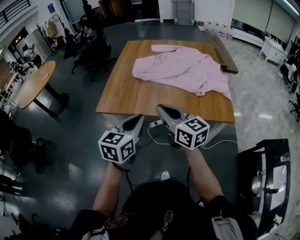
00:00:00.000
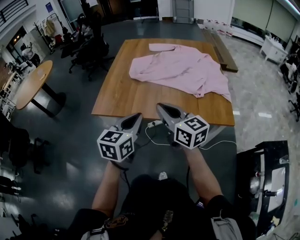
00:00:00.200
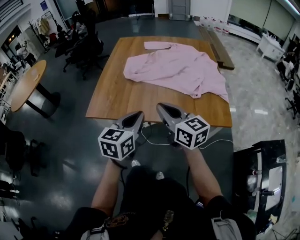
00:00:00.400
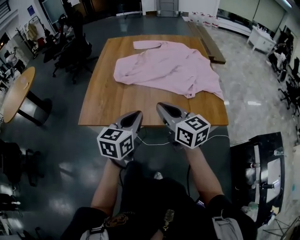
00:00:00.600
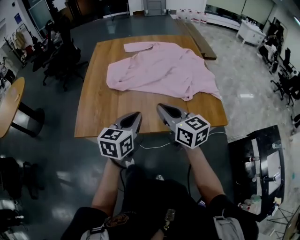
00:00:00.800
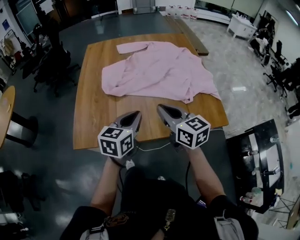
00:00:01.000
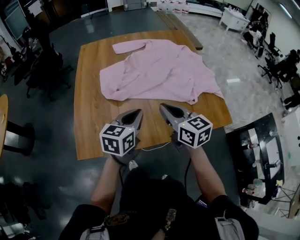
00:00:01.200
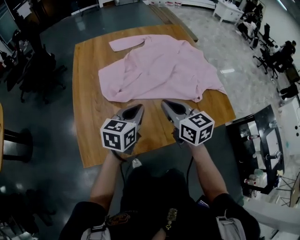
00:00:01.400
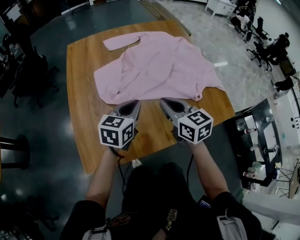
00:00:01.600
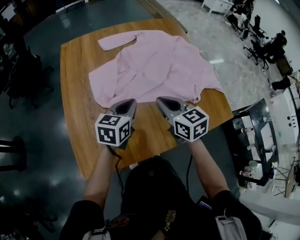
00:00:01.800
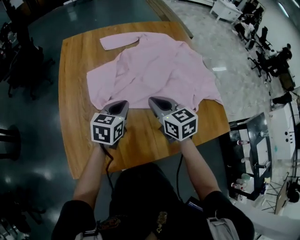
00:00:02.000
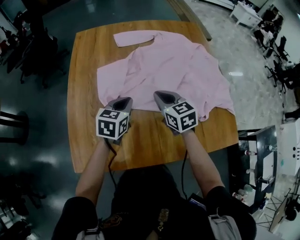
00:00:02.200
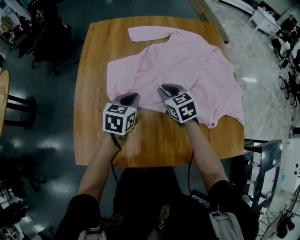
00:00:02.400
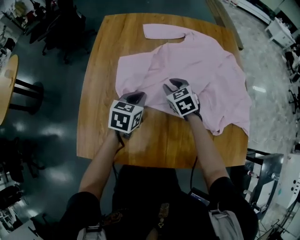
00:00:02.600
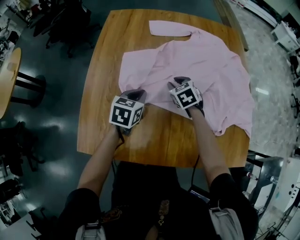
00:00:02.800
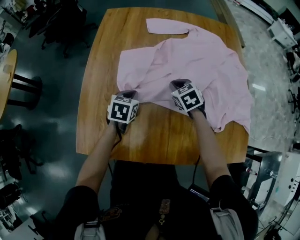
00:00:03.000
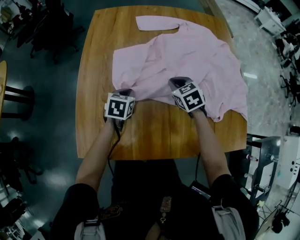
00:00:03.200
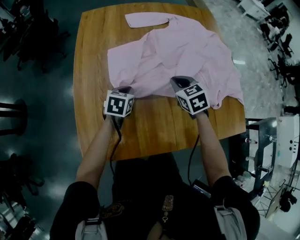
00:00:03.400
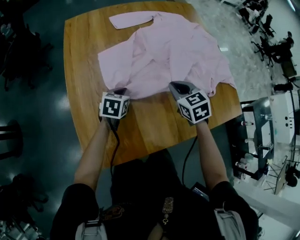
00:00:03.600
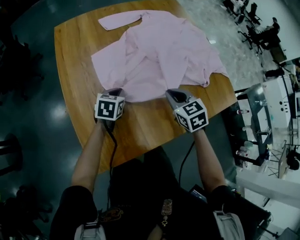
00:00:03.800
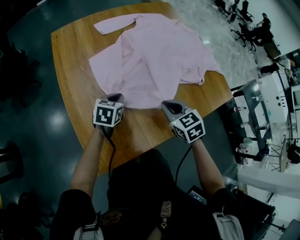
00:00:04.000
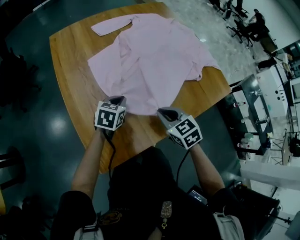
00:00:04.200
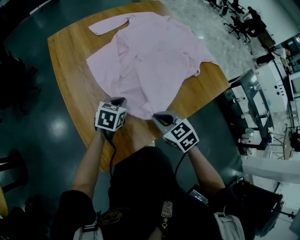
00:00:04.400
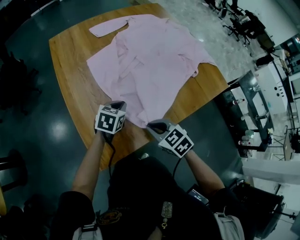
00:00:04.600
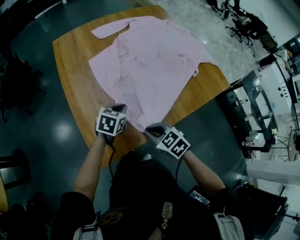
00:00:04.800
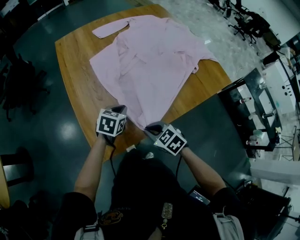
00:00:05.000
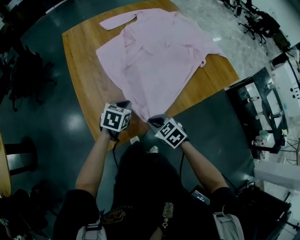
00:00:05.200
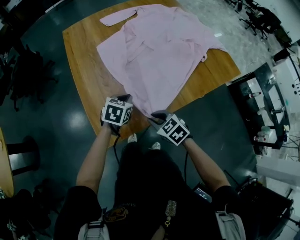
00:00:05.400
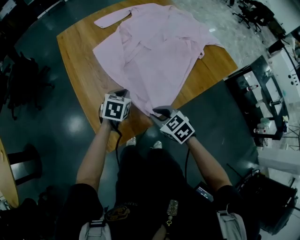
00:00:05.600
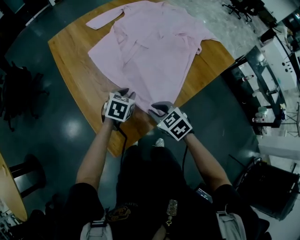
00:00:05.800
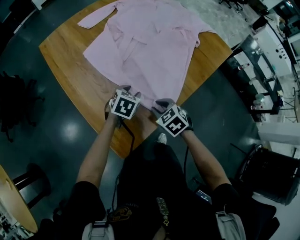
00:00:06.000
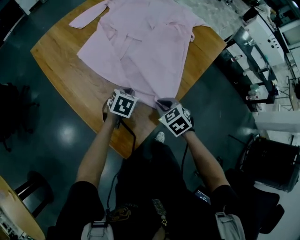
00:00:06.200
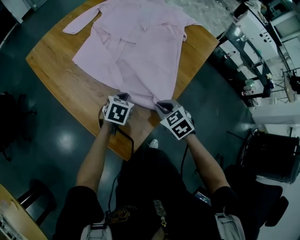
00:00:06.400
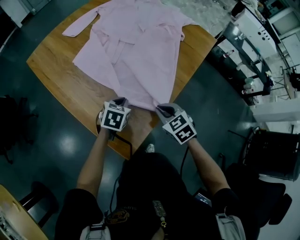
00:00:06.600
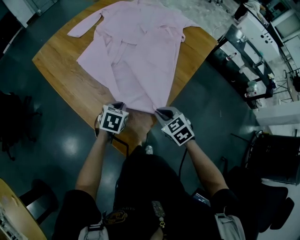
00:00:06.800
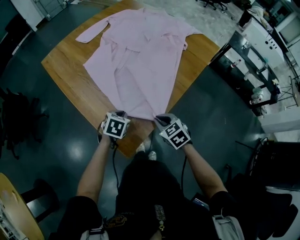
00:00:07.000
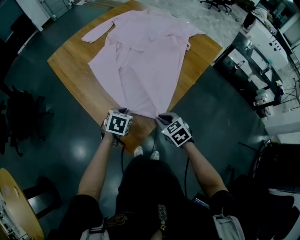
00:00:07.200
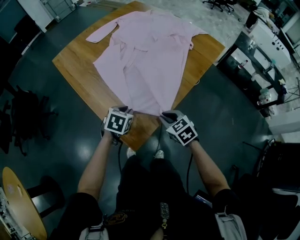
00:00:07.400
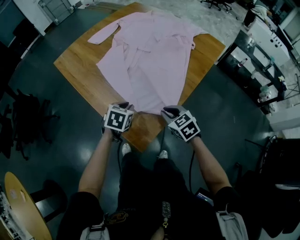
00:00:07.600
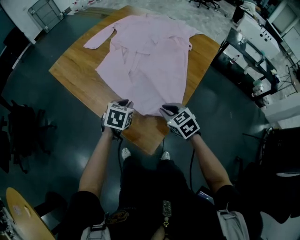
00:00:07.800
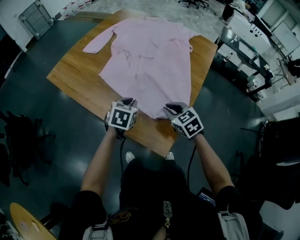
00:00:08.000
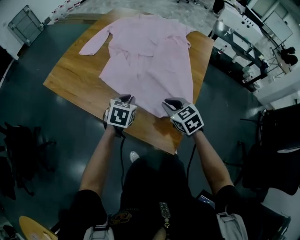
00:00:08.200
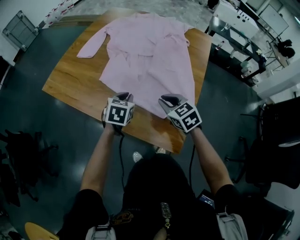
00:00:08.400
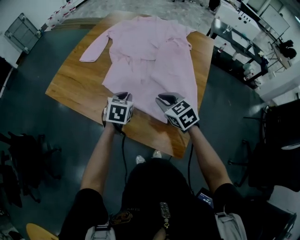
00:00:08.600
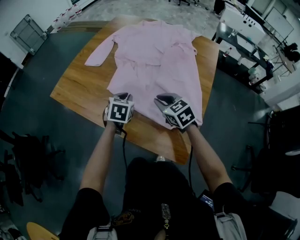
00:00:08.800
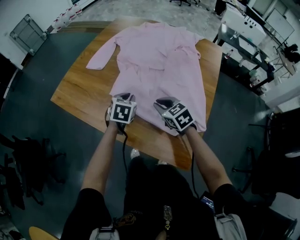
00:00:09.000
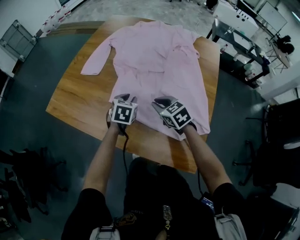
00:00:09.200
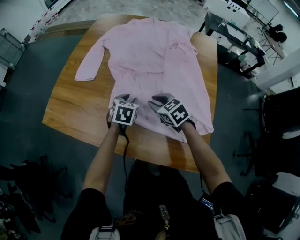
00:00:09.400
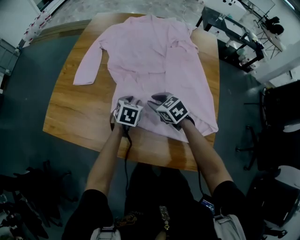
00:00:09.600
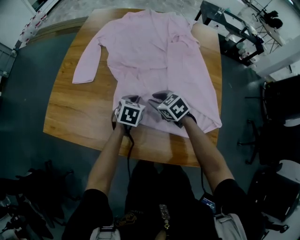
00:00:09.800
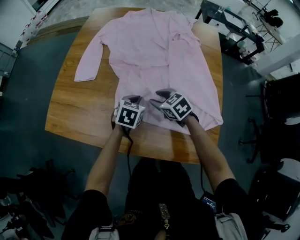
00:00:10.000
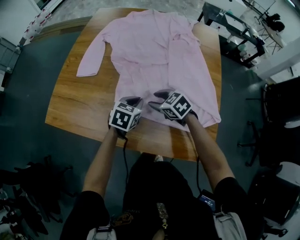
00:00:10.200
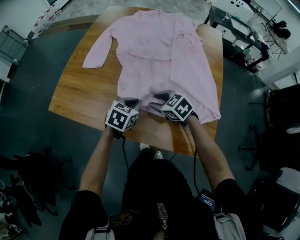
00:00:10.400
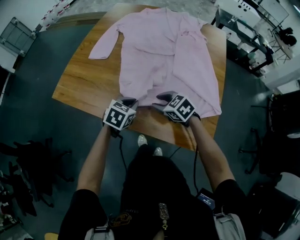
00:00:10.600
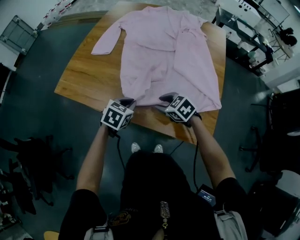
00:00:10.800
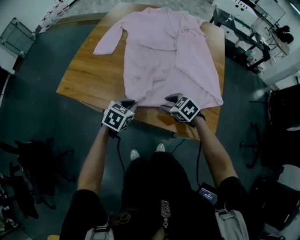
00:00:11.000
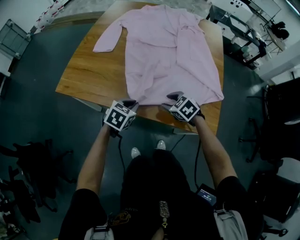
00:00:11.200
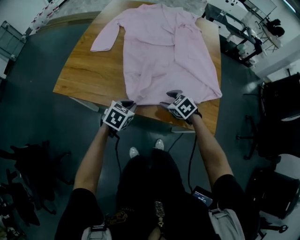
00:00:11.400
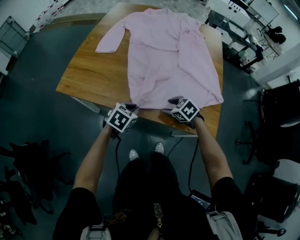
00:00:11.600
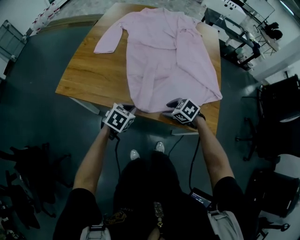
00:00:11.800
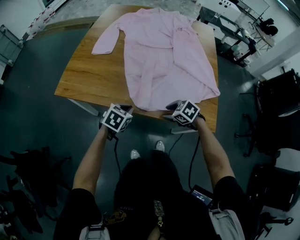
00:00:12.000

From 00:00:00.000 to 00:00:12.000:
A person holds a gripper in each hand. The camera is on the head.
From 00:00:00.000 to 00:00:01.600: The left gripper ends up about 40 cm from where it was, and turns by roughly 30 degrees, while the right gripper changes place by about 30 cm, and turns by approximately 30 degrees.
From 00:00:01.600 to 00:00:03.000: The left gripper heads downward, forward and to the left, covering about 20 cm, and changes its angle by about 40 degrees. The right gripper heads forward and downward, covering about 25 cm, swivels approximately 40 degrees, and opens, then closes once more.
From 00:00:03.000 to 00:00:04.400: The left gripper shifts by about 10 cm, and turns by some 40 degrees. The right gripper moves approximately 30 cm, and turns by about 20 degrees.
From 00:00:04.400 to 00:00:06.000: The right gripper is displaced downward by approximately 10 cm, and travels backward and back again, about 10 cm each way; the left gripper swivels approximately 20 degrees, and opens up.
From 00:00:06.000 to 00:00:07.600: The right gripper heads backward and upward, covering some 10 cm; the left gripper is displaced backward, to the left and upward by some 15 cm, and closes.
From 00:00:07.600 to 00:00:09.000: The right gripper goes about 25 cm to the left and forward. Meanwhile the left gripper moves forward and to the left, about 25 cm.
From 00:00:09.000 to 00:00:10.400: The left gripper reaches some 10 cm forward, then returns, and turns by some 30 degrees. The right gripper travels to the left by about 10 cm, moves some 10 cm forward and comes back, and opens its fingers.
From 00:00:10.400 to 00:00:12.000: The left gripper goes about 15 cm to the left and backward. Meanwhile the right gripper is displaced backward by roughly 15 cm.

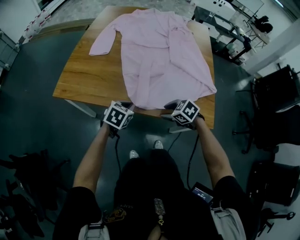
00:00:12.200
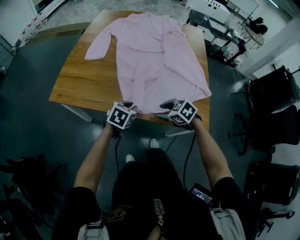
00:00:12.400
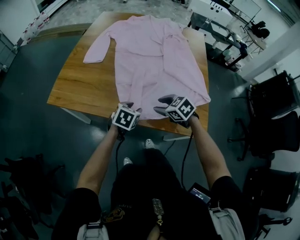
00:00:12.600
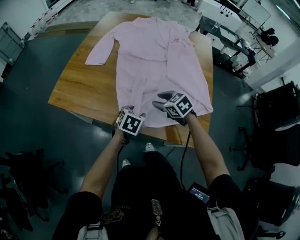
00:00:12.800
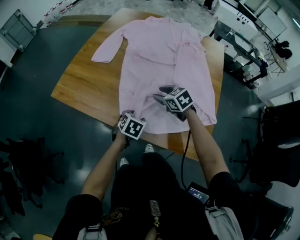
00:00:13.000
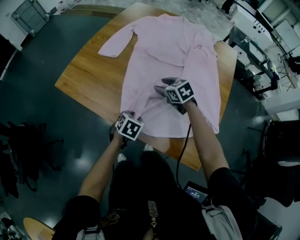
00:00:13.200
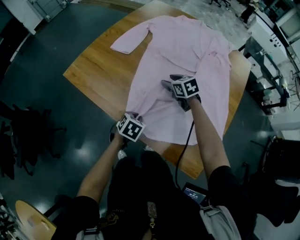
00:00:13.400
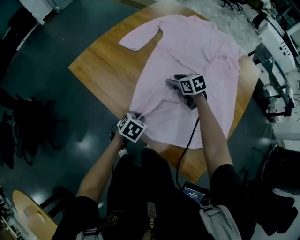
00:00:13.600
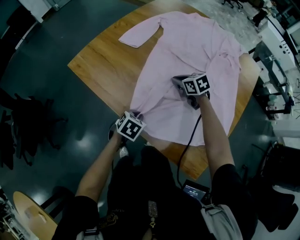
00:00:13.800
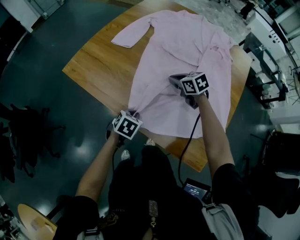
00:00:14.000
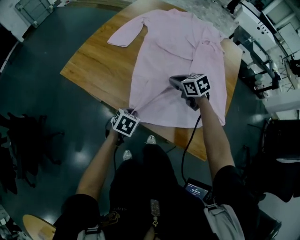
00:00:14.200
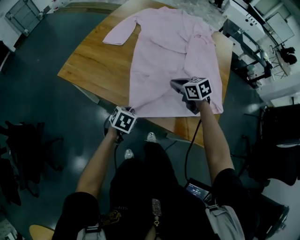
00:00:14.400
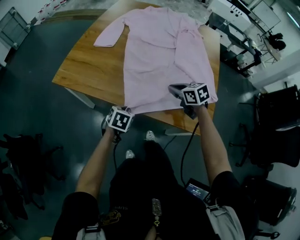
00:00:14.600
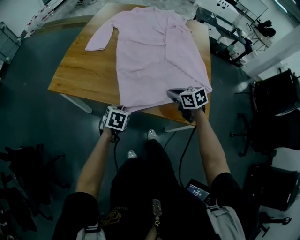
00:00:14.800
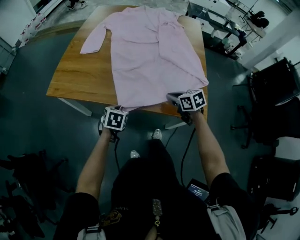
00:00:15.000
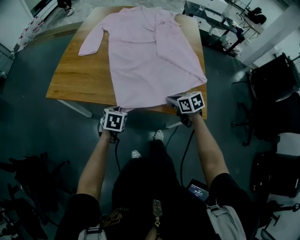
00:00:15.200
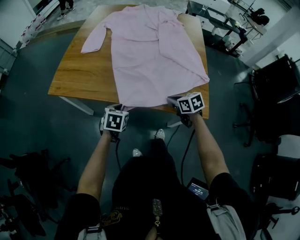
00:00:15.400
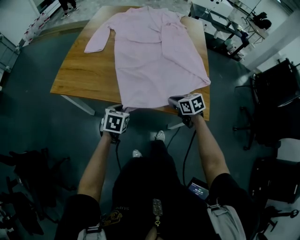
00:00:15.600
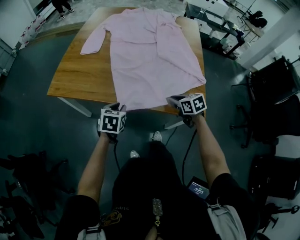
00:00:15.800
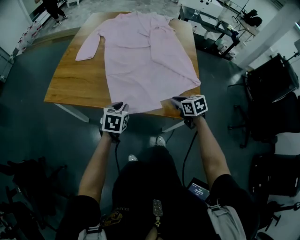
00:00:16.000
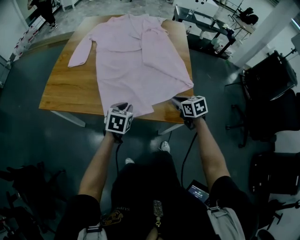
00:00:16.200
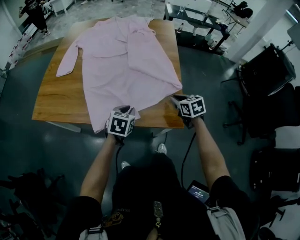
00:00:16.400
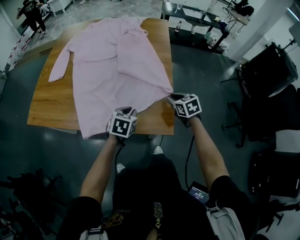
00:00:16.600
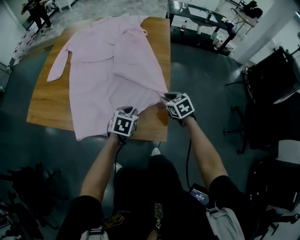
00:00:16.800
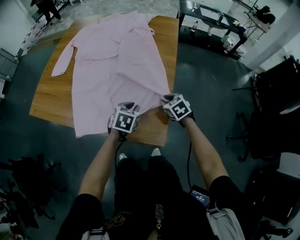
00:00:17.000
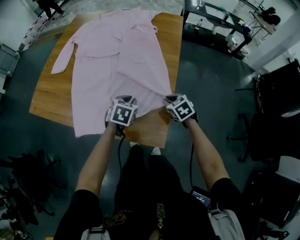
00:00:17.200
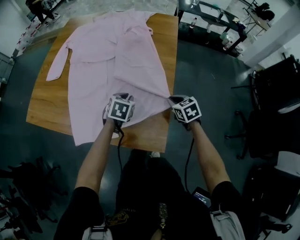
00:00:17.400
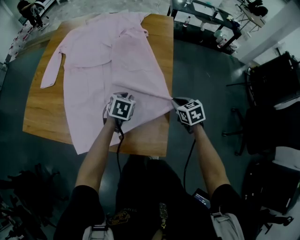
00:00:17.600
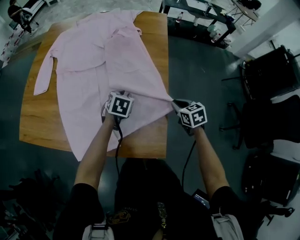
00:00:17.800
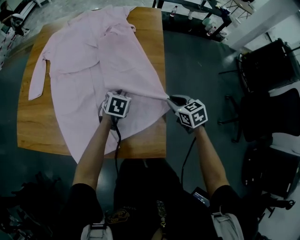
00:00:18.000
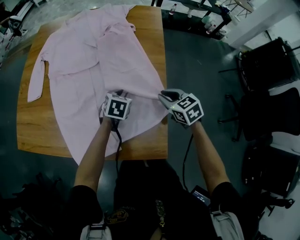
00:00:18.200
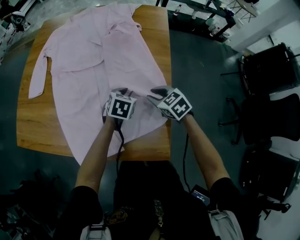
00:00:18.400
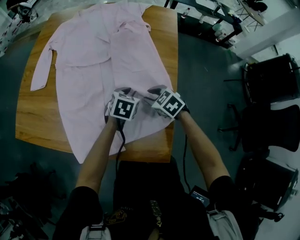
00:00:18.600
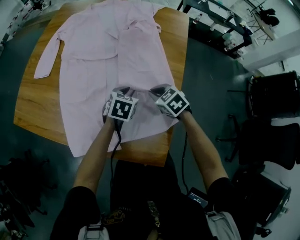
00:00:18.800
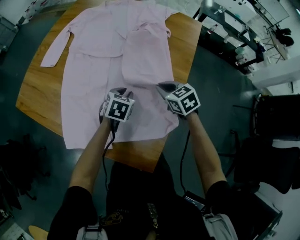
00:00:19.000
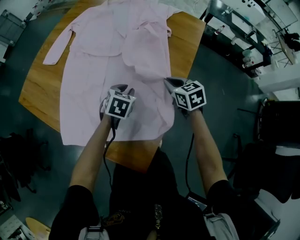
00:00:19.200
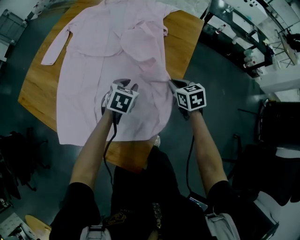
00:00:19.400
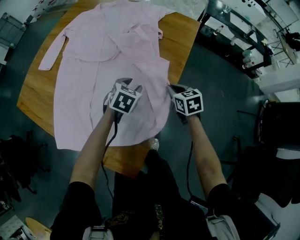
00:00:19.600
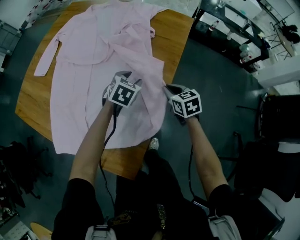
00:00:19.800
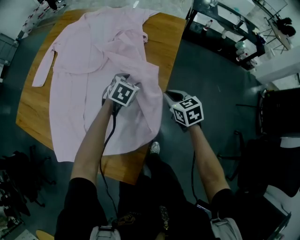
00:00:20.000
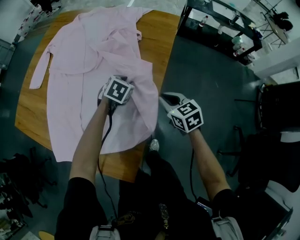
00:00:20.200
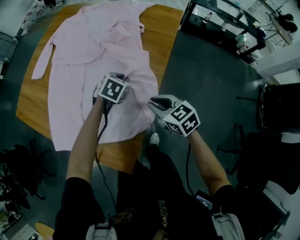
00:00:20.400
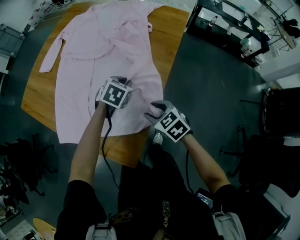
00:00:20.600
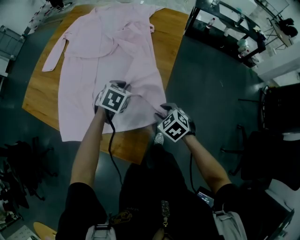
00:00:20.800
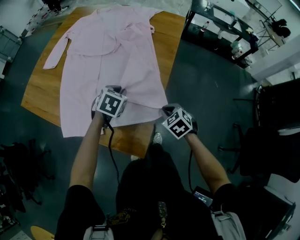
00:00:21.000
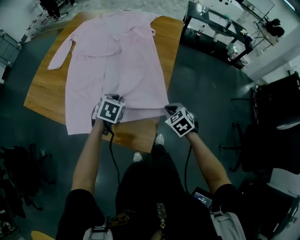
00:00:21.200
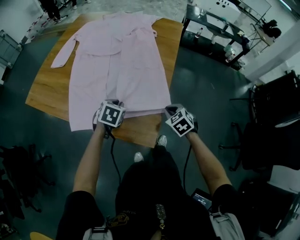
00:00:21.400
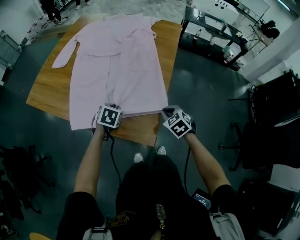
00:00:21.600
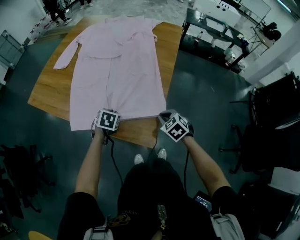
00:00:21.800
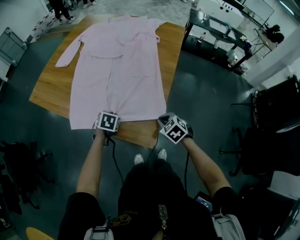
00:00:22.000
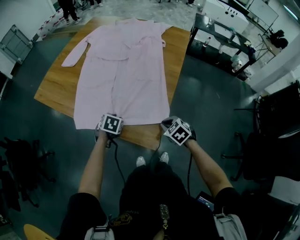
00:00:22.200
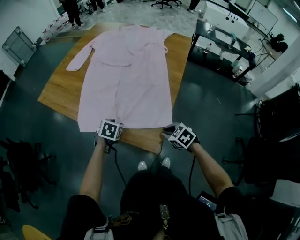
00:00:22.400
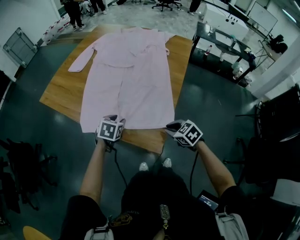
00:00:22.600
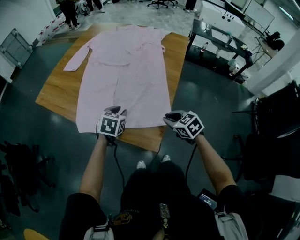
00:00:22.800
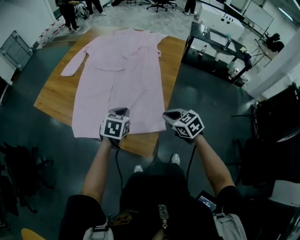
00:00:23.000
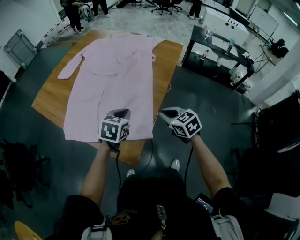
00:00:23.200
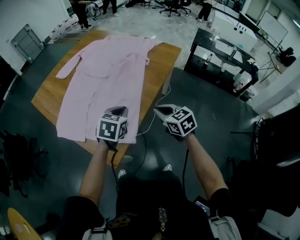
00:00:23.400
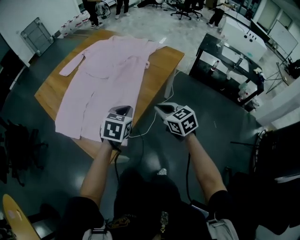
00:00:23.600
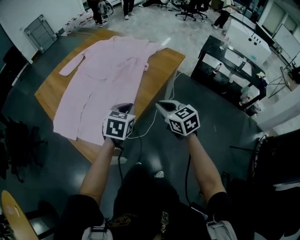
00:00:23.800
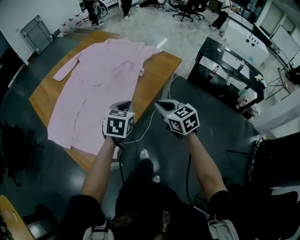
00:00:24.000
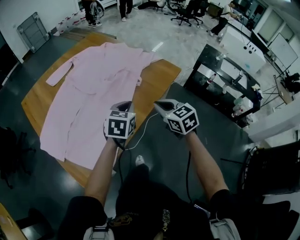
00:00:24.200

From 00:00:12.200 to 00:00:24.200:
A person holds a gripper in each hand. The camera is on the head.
From 00:00:12.200 to 00:00:13.800: The right gripper shifts approximately 30 cm forward, and closes, while the left gripper goes roughly 5 cm downward, turns by roughly 30 degrees, and opens, then closes once more.
From 00:00:13.800 to 00:00:15.200: The left gripper heads backward and to the left, covering approximately 10 cm, while the right gripper heads backward, covering approximately 30 cm, and rotates about 40 degrees.
From 00:00:15.200 to 00:00:16.600: Both grippers travel together to the right, roughly 25 cm.
From 00:00:16.600 to 00:00:18.200: The left gripper travels forward by approximately 20 cm, while the right gripper moves forward, approximately 10 cm.
From 00:00:18.200 to 00:00:19.800: The right gripper heads forward, to the right and downward, covering about 15 cm. The left gripper shifts some 15 cm forward and to the right, and opens.
From 00:00:19.800 to 00:00:21.200: Both grippers move backward and to the left, about 25 cm. The right gripper swivels about 30 degrees, and opens, then closes once more, while the left gripper closes its fingers.
From 00:00:21.200 to 00:00:22.600: The grippers both shift to the left and backward by about 10 cm. The right gripper swivels roughly 20 degrees. Meanwhile the left gripper opens up.
From 00:00:22.600 to 00:00:24.200: Both grippers are carried to the right and forward, approximately 40 cm. The left gripper turns by about 30 degrees, and closes up. The right gripper travels upward by about 15 cm, and changes its angle by some 20 degrees.
